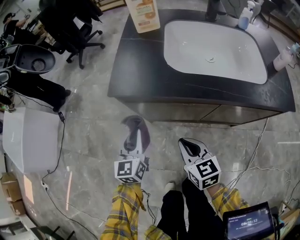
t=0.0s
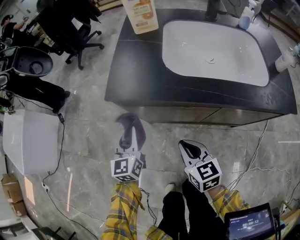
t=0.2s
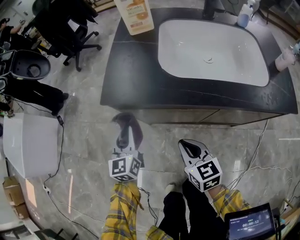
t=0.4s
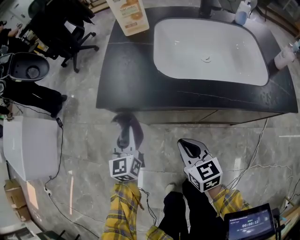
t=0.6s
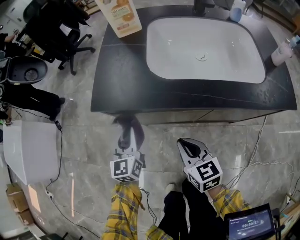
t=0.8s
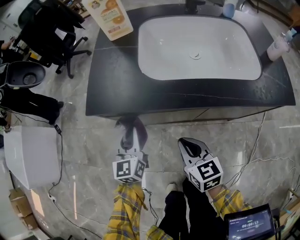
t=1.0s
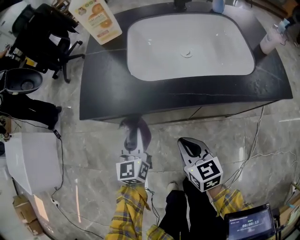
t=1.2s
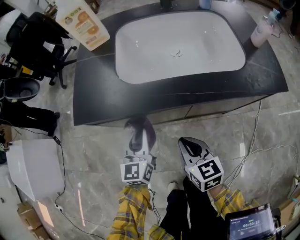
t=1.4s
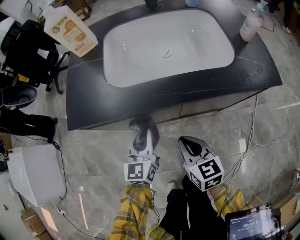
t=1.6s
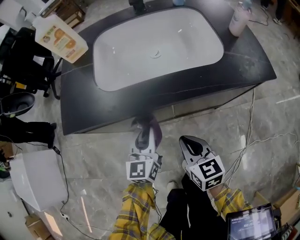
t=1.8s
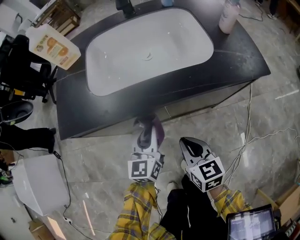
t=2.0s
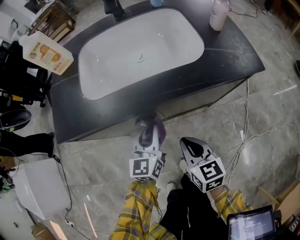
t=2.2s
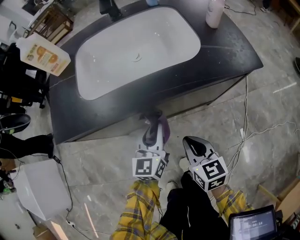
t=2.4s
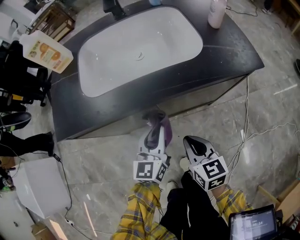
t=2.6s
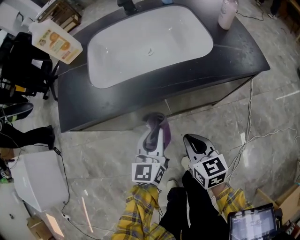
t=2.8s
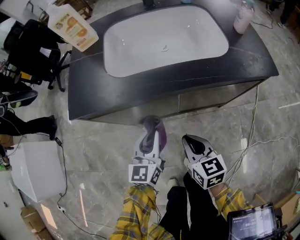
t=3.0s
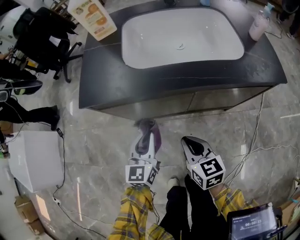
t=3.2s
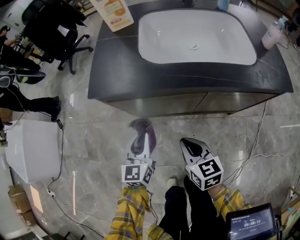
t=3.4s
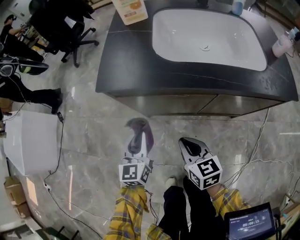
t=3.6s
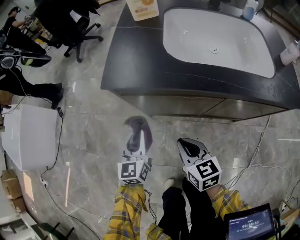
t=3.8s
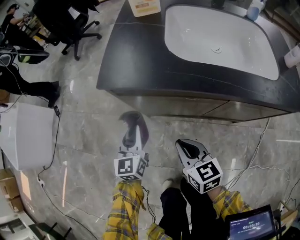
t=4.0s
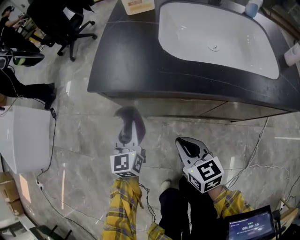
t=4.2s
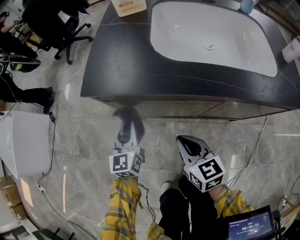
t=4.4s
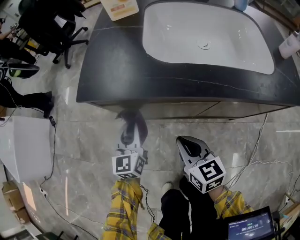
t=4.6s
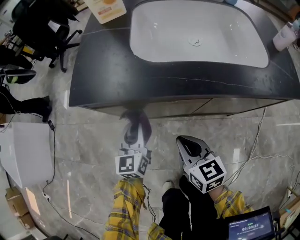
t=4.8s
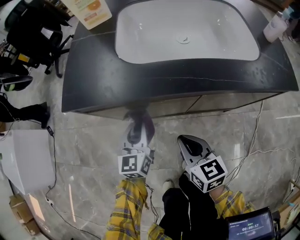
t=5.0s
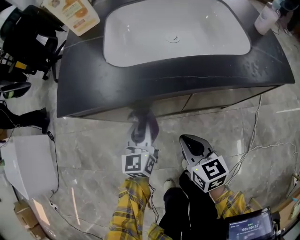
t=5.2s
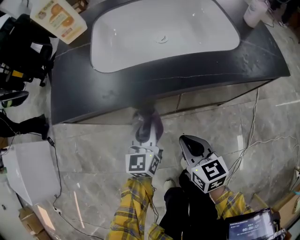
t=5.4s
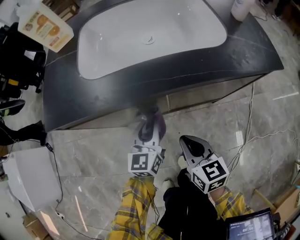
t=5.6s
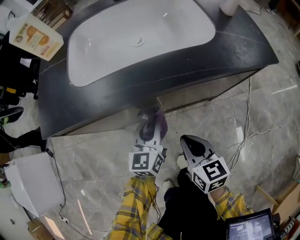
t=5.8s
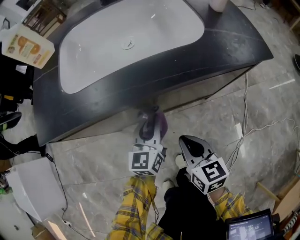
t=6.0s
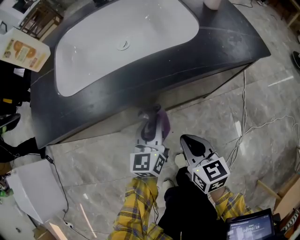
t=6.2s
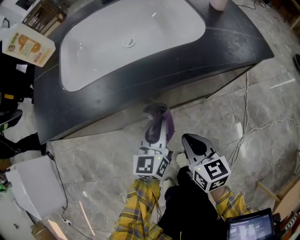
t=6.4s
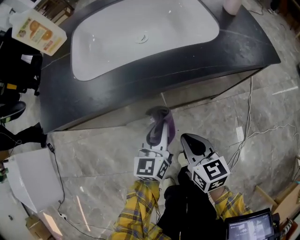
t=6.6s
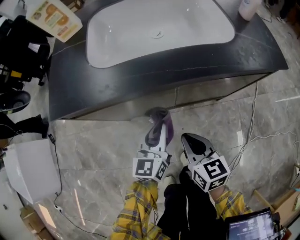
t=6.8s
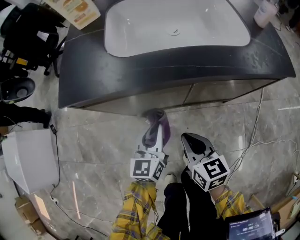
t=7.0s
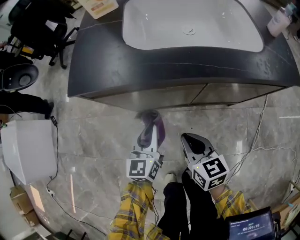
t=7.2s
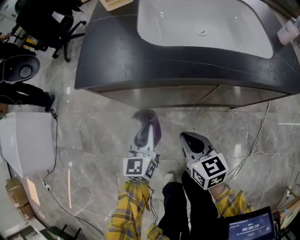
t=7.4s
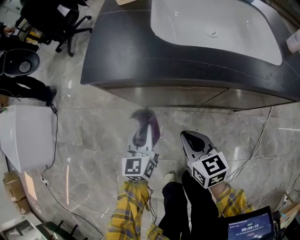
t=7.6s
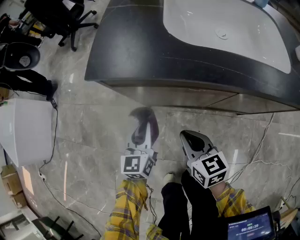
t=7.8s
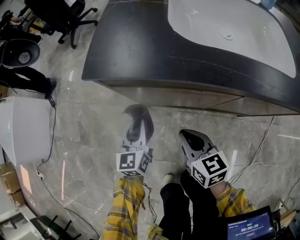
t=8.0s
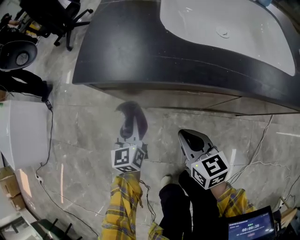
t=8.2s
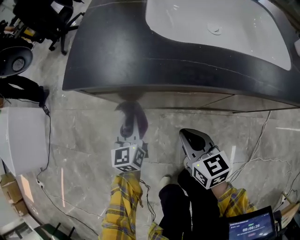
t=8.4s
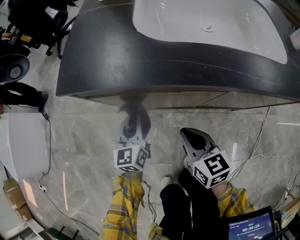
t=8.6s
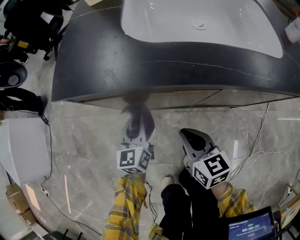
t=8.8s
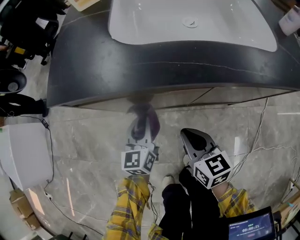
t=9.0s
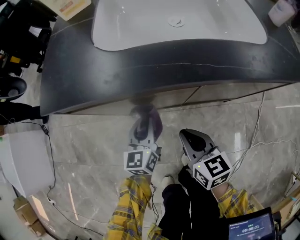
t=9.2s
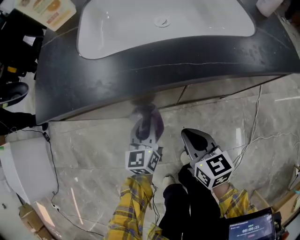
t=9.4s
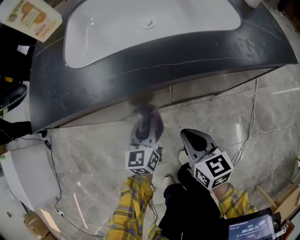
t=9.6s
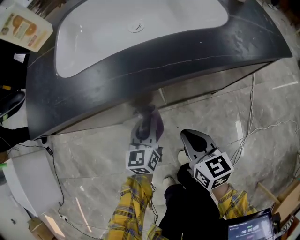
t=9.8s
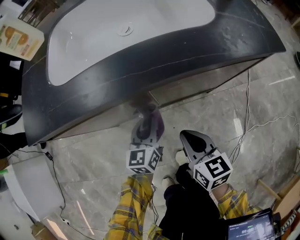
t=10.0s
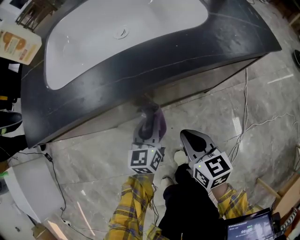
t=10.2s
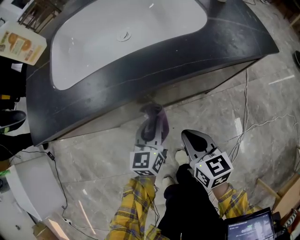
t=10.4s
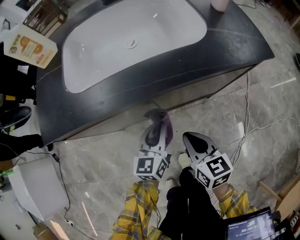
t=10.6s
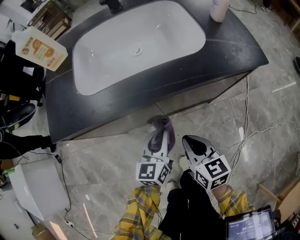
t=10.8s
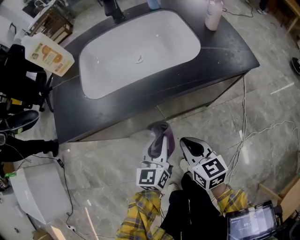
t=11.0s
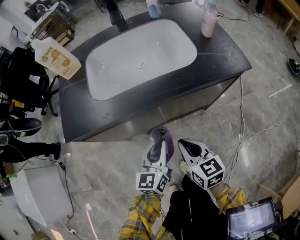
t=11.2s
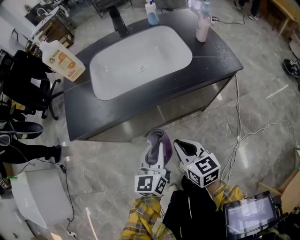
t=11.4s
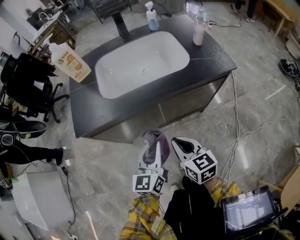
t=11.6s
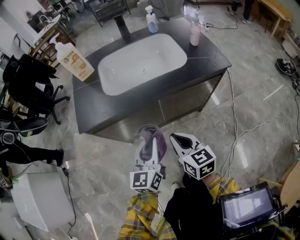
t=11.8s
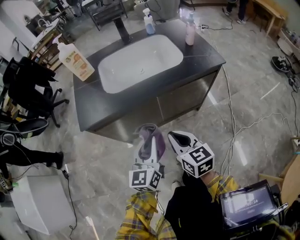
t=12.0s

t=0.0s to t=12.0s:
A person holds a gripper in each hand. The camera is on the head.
t=0.0s to t=1.6s: The grippers both shift to the right by about 15 cm.
t=1.6s to t=3.0s: The left gripper is displaced backward by approximately 5 cm, and travels to the right and back again, some 15 cm each way, while the right gripper reaches some 10 cm to the right, then returns.
t=3.0s to t=4.4s: The left gripper shifts about 20 cm to the left and forward, and rotates roughly 20 degrees, while the right gripper travels to the left and forward by roughly 15 cm.
t=4.4s to t=6.0s: The right gripper changes place by roughly 20 cm, and rotates some 20 degrees, while the left gripper ends up some 30 cm from where it was, and turns by about 30 degrees.
t=6.0s to t=7.6s: The two grippers go roughly 25 cm to the left. The left gripper swivels about 20 degrees, while the right gripper turns by approximately 20 degrees.
t=7.6s to t=9.0s: Both grippers move to the right, about 5 cm.
t=9.0s to t=10.4s: Both grippers move to the right, some 20 cm.
t=10.4s to t=12.0s: The left gripper heads upward and backward, covering roughly 30 cm. Meanwhile the right gripper is displaced upward, to the left and backward by some 25 cm.

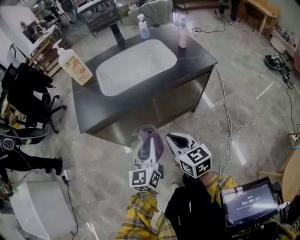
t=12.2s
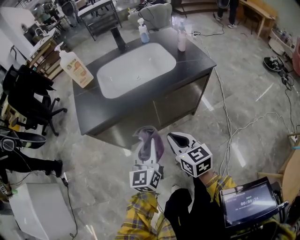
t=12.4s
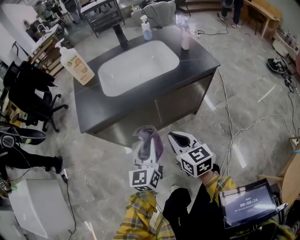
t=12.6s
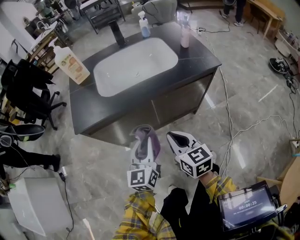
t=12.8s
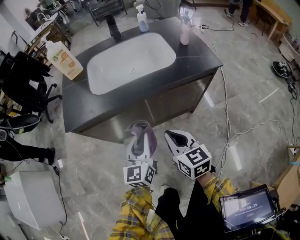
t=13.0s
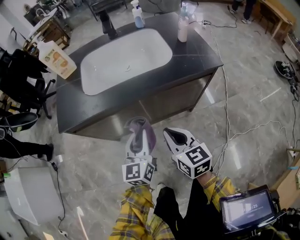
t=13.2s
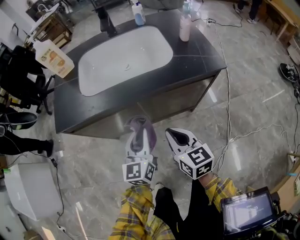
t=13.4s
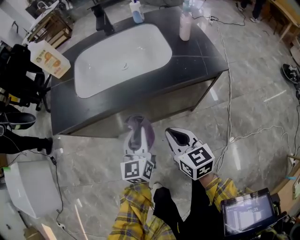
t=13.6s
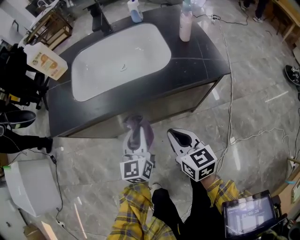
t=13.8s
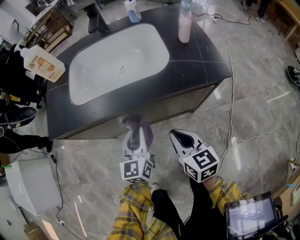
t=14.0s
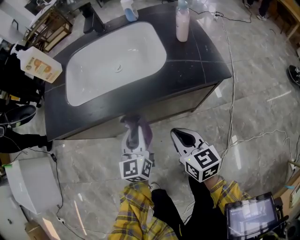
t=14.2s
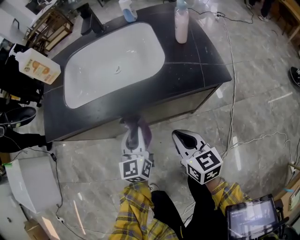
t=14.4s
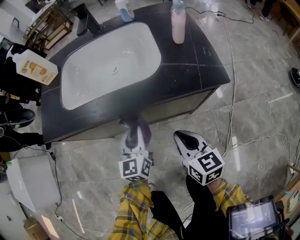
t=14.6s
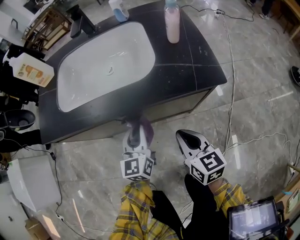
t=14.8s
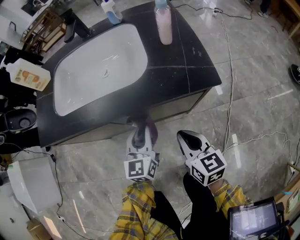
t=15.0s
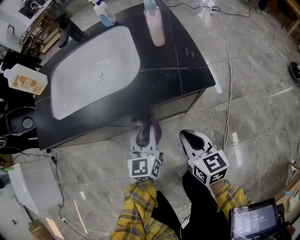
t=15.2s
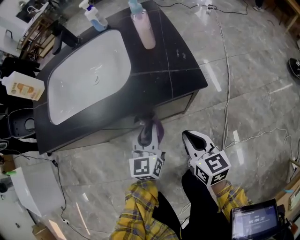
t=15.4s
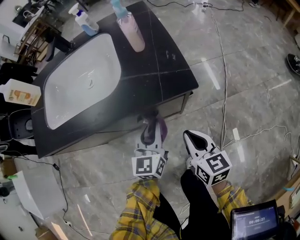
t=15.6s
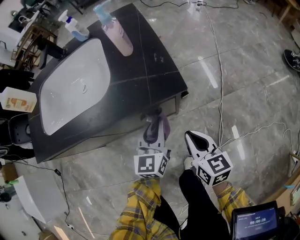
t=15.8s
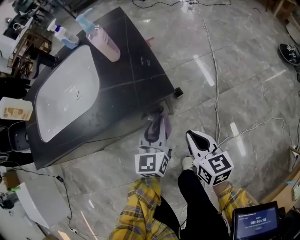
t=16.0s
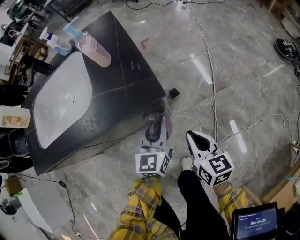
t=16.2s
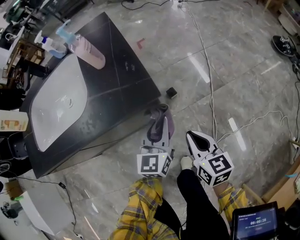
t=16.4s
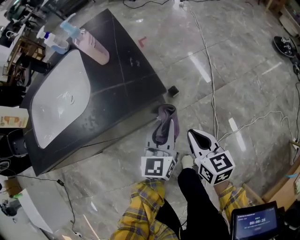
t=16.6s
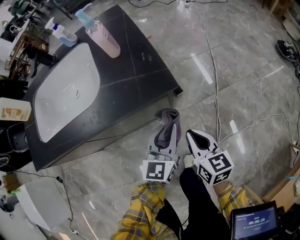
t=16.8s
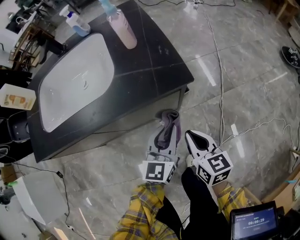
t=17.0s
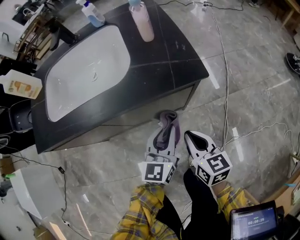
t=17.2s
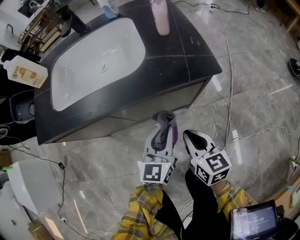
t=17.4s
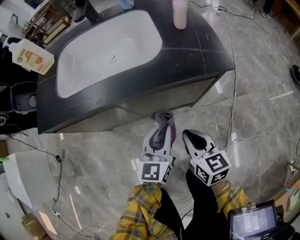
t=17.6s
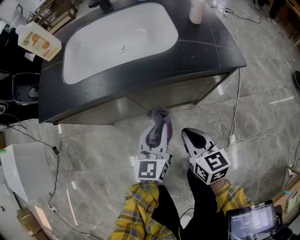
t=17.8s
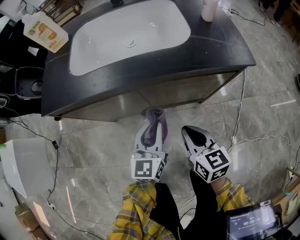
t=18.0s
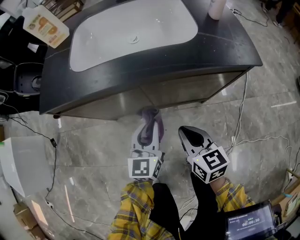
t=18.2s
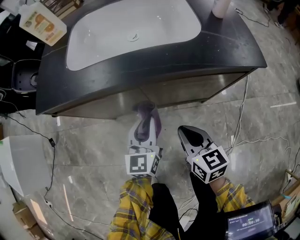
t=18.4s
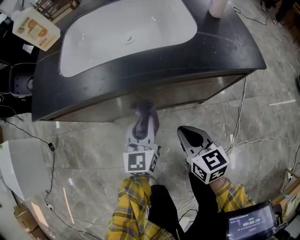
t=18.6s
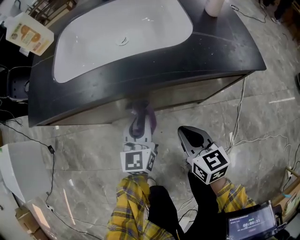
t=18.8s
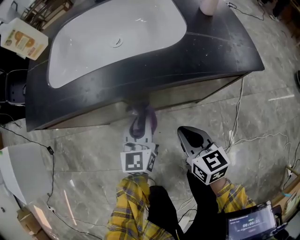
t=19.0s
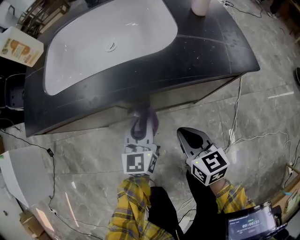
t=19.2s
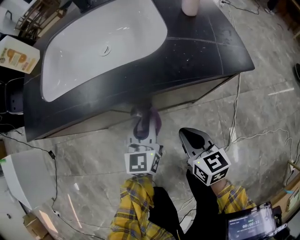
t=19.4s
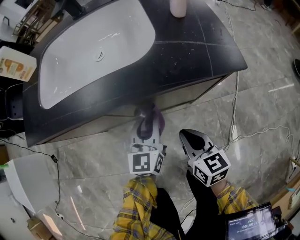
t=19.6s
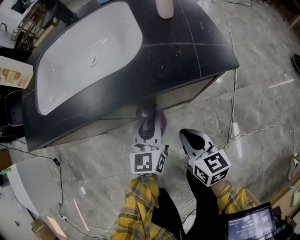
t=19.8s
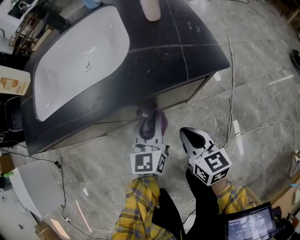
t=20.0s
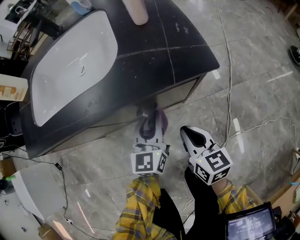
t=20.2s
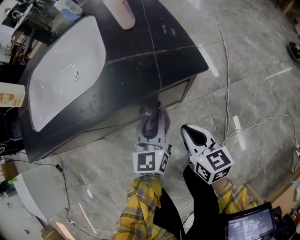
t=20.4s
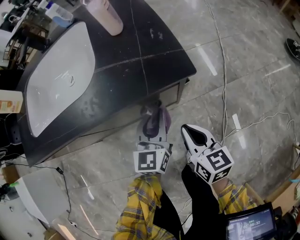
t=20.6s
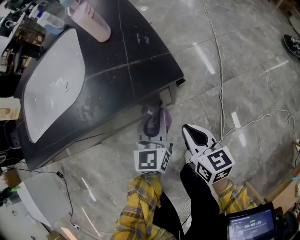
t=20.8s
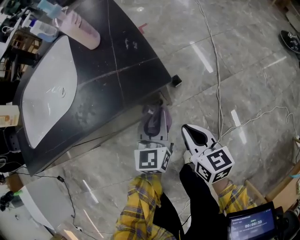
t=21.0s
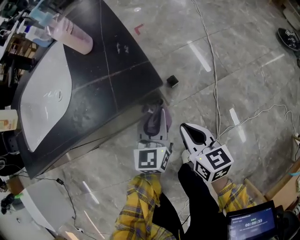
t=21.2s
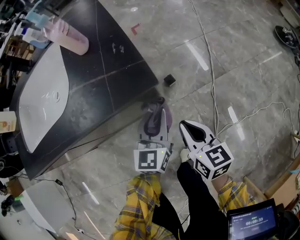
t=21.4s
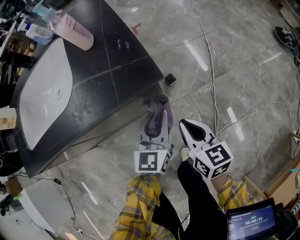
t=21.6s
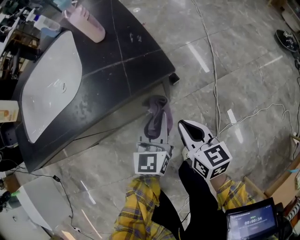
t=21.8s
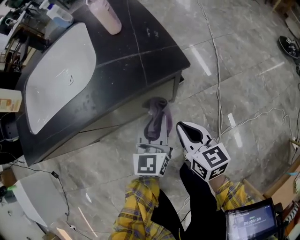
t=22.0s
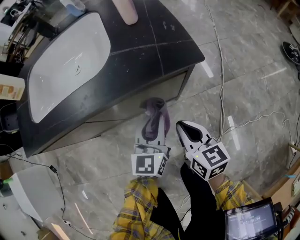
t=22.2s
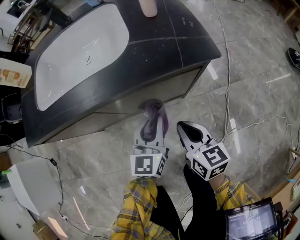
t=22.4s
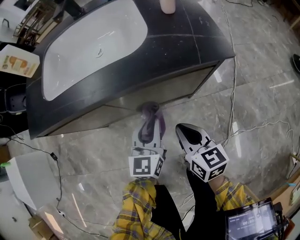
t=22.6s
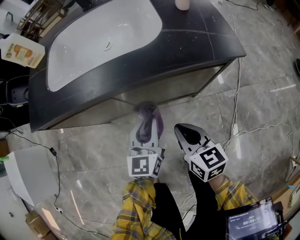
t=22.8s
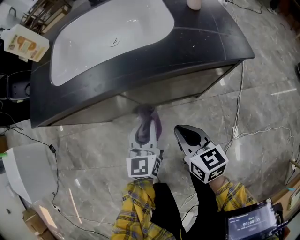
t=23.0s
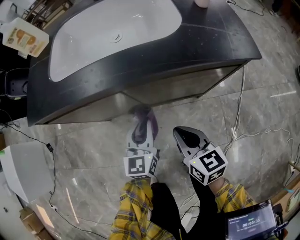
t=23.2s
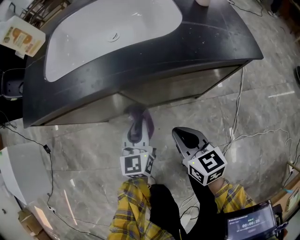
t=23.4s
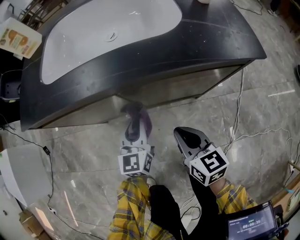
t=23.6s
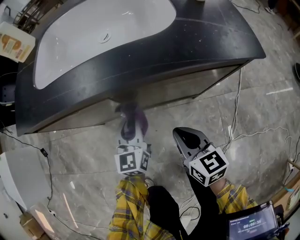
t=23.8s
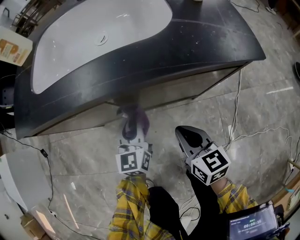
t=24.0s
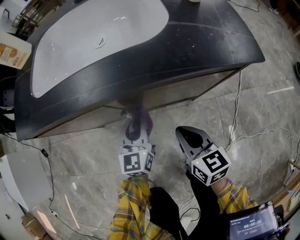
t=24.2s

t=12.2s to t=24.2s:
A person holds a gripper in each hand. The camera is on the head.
t=12.2s to t=13.8s: The left gripper is displaced forward, to the right and downward by about 20 cm. Meanwhile the right gripper heads to the right, forward and downward, covering some 20 cm.
t=13.8s to t=15.2s: The grippers both shift to the right by about 15 cm.
t=15.2s to t=16.6s: The grippers both shift to the right by about 20 cm. The left gripper rotates about 20 degrees.
t=16.6s to t=18.2s: Both grippers move to the left, about 35 cm. The left gripper swivels about 20 degrees; the right gripper changes its angle by roughly 20 degrees.
t=18.2s to t=19.8s: The left gripper moves to the right and forward, approximately 15 cm; the right gripper is displaced to the right by about 15 cm.
t=19.8s to t=21.2s: Both grippers move to the right, roughly 20 cm.
t=21.2s to t=22.6s: Both grippers travel together to the left, roughly 20 cm.
t=22.6s to t=24.2s: The left gripper is displaced to the left, downward and forward by approximately 10 cm. Meanwhile the right gripper heads downward, covering approximately 5 cm.
